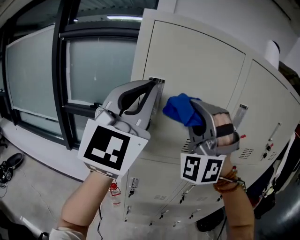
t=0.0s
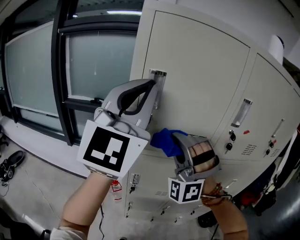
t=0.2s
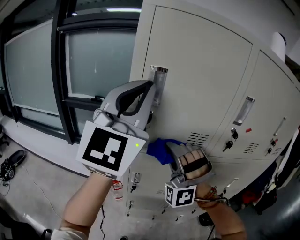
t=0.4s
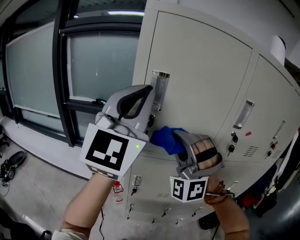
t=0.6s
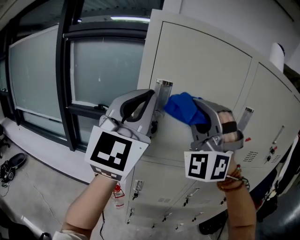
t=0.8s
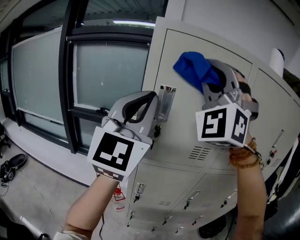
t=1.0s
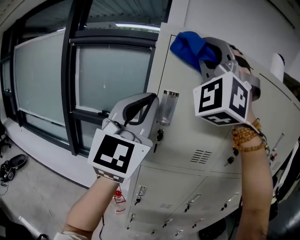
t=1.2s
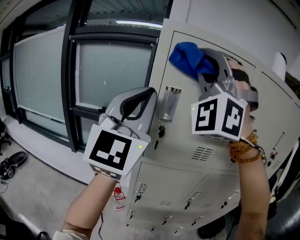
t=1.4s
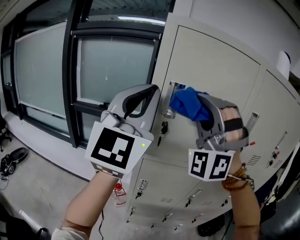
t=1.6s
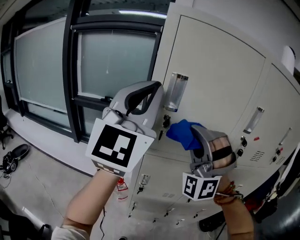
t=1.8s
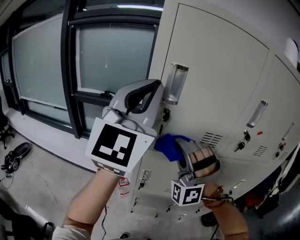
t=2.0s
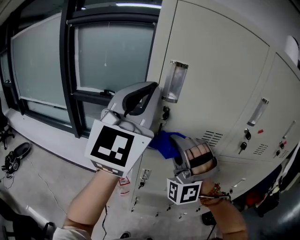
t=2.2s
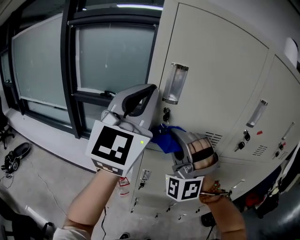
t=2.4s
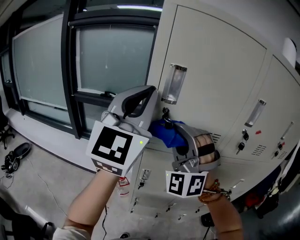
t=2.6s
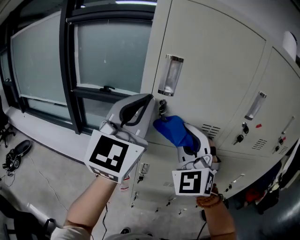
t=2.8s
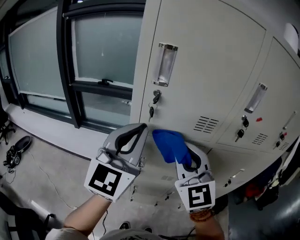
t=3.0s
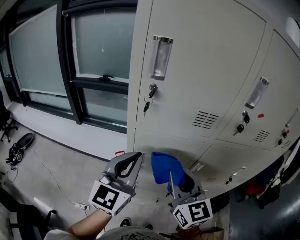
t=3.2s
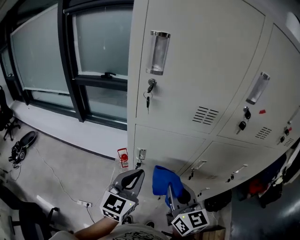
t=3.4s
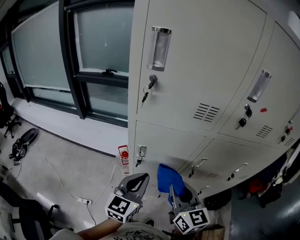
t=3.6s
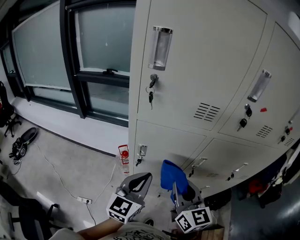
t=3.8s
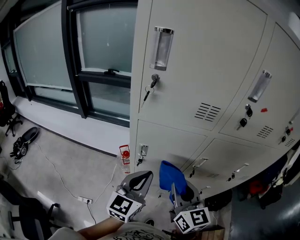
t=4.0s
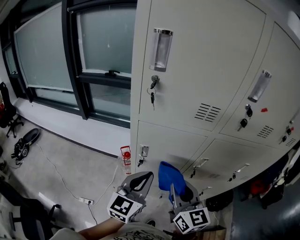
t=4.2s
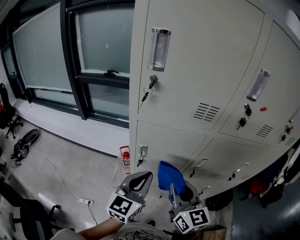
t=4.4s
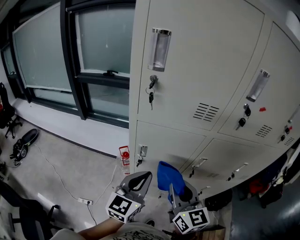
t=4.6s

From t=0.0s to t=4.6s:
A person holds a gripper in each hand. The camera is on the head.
From t=1.6s to t=3.0s: The left gripper moves downward, some 15 cm.
From t=3.0s to t=4.6s: The left gripper moves downward, about 20 cm, and swivels some 30 degrees.

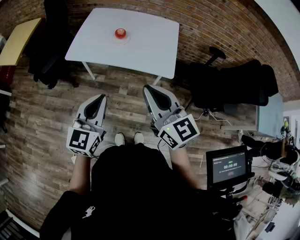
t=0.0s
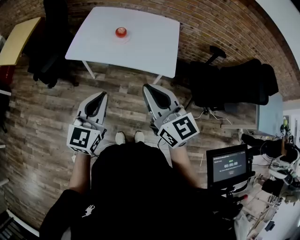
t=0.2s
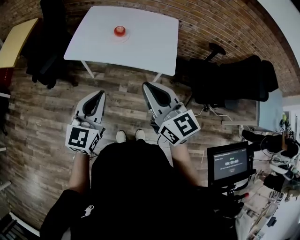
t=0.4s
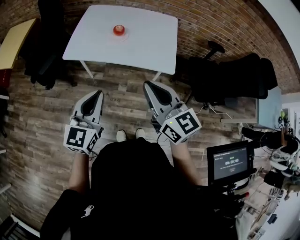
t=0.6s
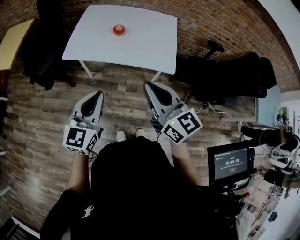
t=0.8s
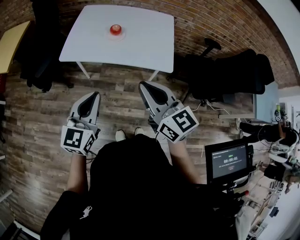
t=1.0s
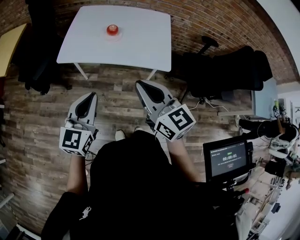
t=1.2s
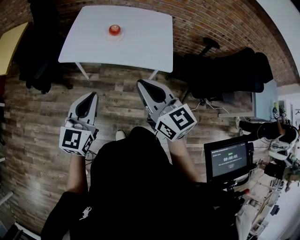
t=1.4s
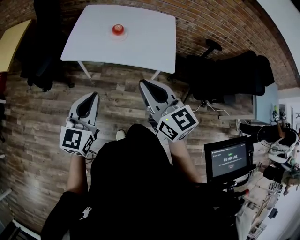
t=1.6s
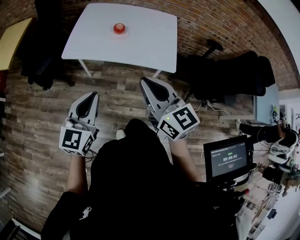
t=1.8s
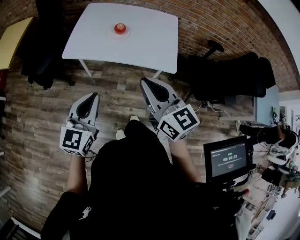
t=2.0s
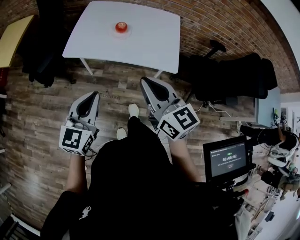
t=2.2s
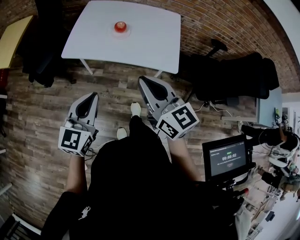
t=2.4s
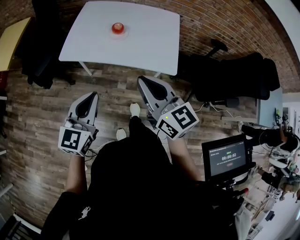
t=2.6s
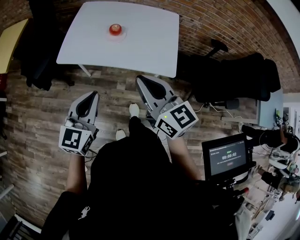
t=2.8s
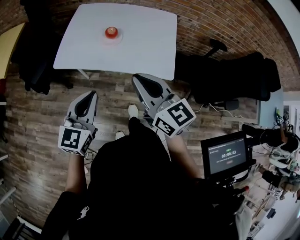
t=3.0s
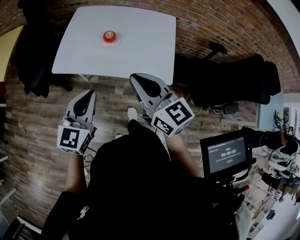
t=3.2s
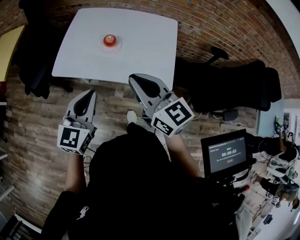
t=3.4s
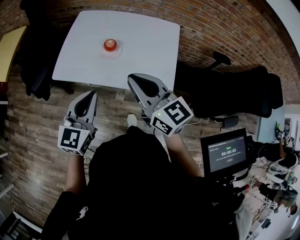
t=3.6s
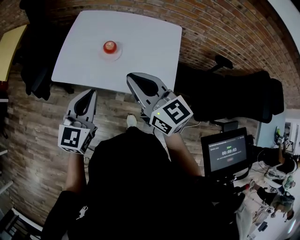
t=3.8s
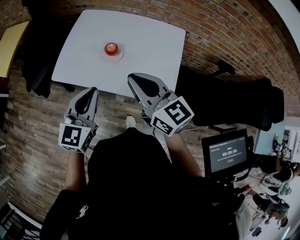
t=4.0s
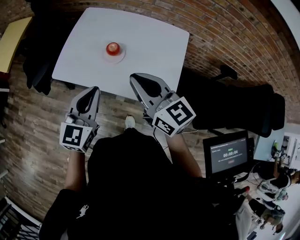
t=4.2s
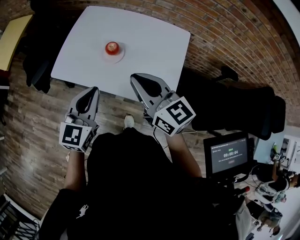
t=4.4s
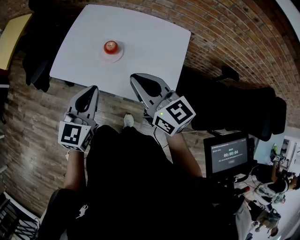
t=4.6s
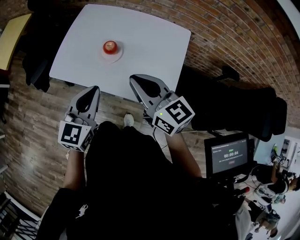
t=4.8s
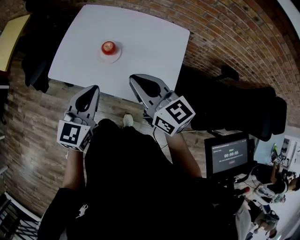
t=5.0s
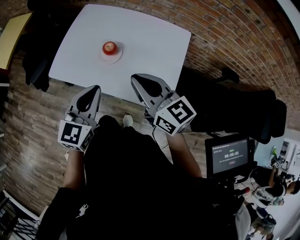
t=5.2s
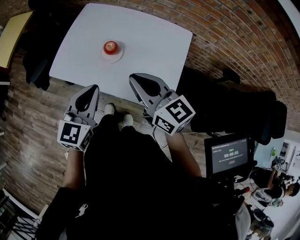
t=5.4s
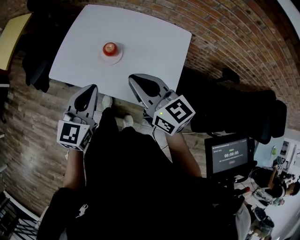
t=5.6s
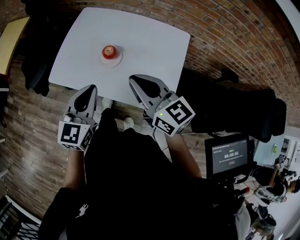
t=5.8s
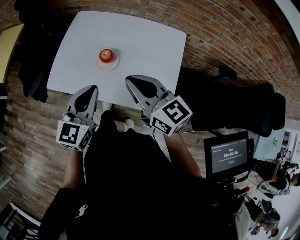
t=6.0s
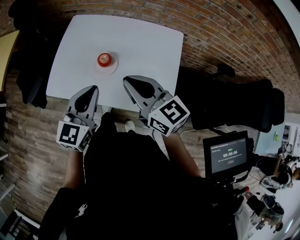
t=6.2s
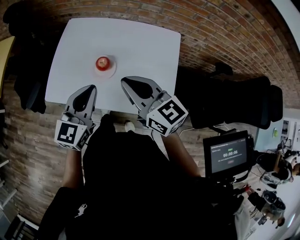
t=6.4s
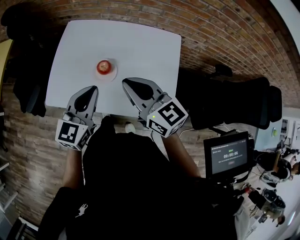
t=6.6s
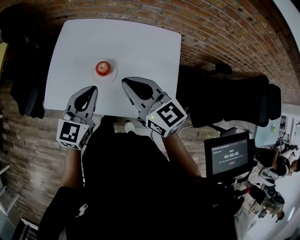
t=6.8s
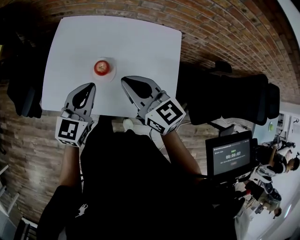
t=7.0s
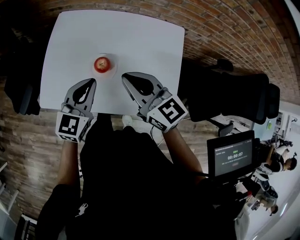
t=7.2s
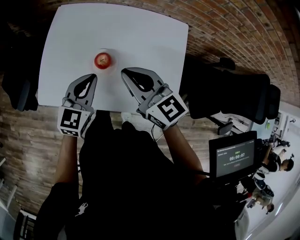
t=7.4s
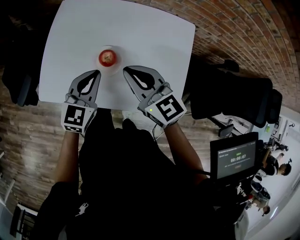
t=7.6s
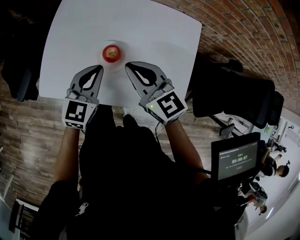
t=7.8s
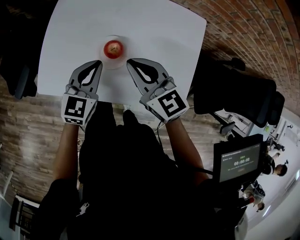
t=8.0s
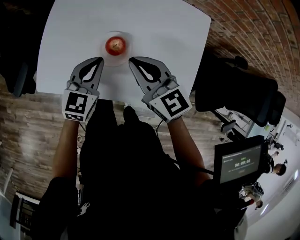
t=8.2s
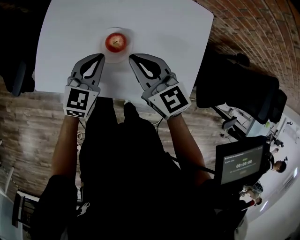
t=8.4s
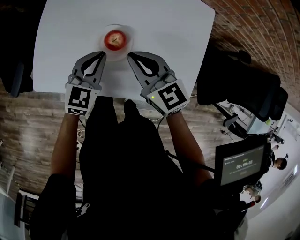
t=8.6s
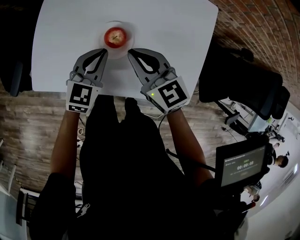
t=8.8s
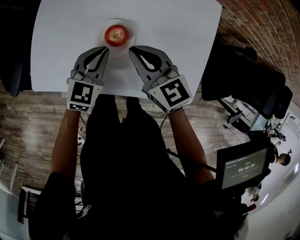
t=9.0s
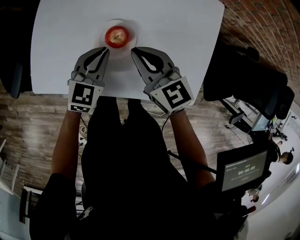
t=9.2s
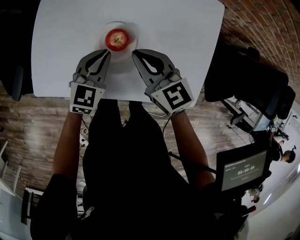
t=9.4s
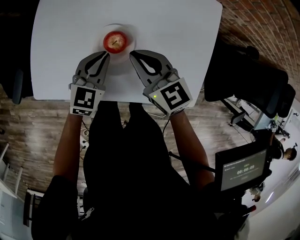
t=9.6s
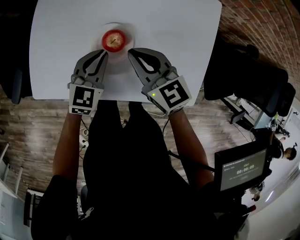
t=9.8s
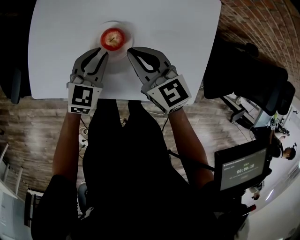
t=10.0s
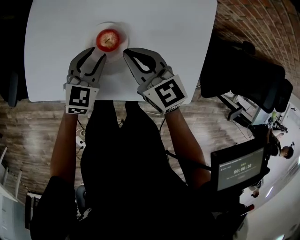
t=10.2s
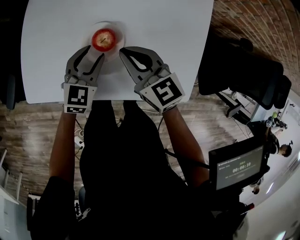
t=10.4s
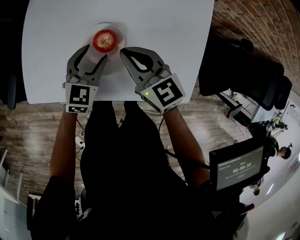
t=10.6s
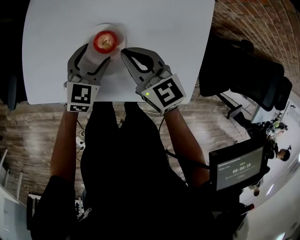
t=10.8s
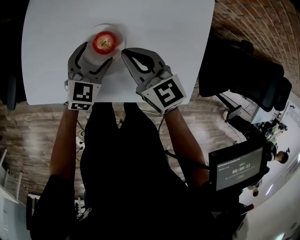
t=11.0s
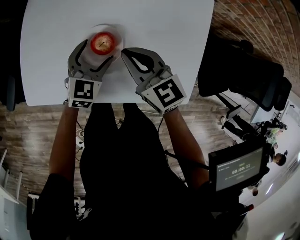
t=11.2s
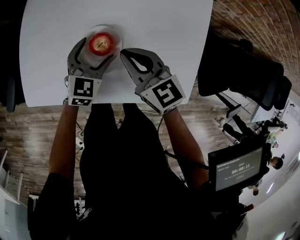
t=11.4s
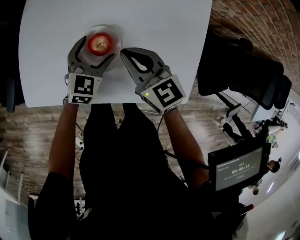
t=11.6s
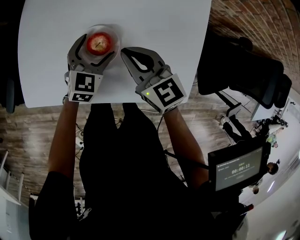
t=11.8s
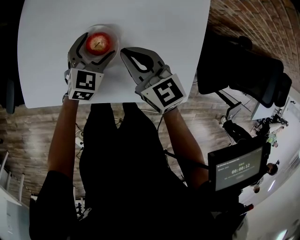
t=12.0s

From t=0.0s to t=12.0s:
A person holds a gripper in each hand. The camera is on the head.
From t=0.0s to t=1.6s: The left gripper shifts approximately 5 cm to the left; the right gripper moves about 5 cm.
From t=1.6s to t=3.0s: The grippers both shift forward by roughly 10 cm.
From t=3.0s to t=4.4s: The right gripper shifts some 15 cm forward; the left gripper travels forward and to the right by some 15 cm.
From t=4.4s to t=6.0s: Both grippers travel together forward, roughly 5 cm.
From t=6.0s to t=7.6s: The left gripper travels forward and downward by roughly 20 cm; the right gripper goes about 15 cm forward, downward and to the left.
From t=7.6s to t=9.0s: The grippers both shift downward by approximately 10 cm.
From t=9.0s to t=10.4s: The left gripper opens.
From t=10.4s to t=12.0s: The left gripper opens its fingers.

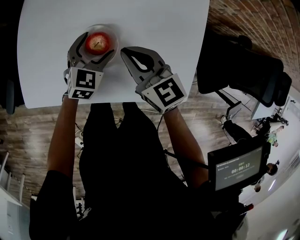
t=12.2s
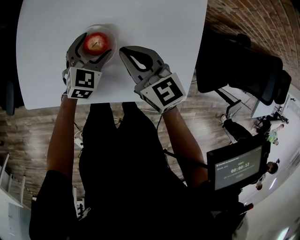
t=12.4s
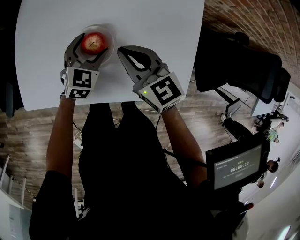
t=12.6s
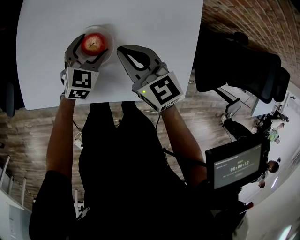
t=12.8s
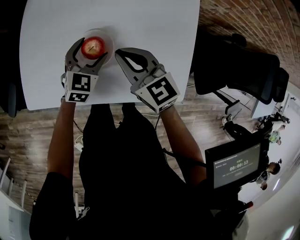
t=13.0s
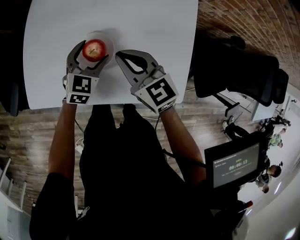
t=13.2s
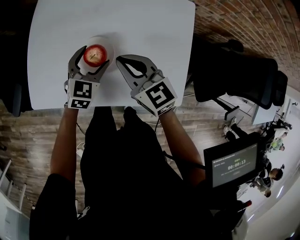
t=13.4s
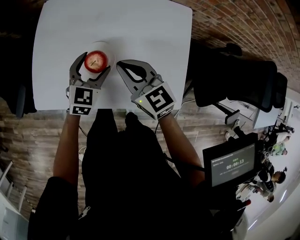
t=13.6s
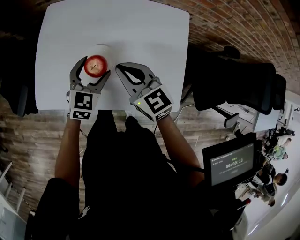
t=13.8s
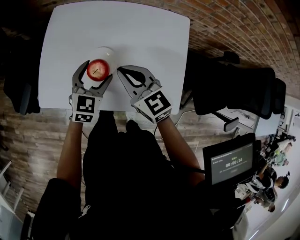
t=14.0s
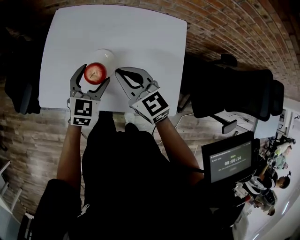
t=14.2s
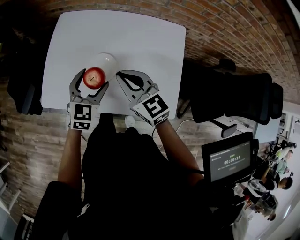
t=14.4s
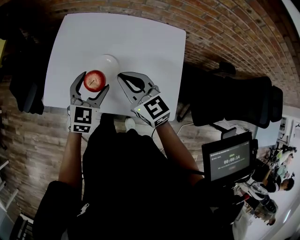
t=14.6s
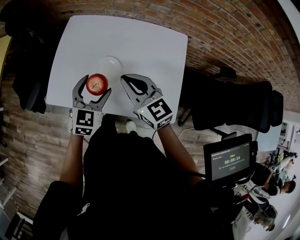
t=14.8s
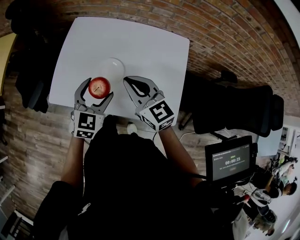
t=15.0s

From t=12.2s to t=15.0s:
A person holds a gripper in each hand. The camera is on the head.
From t=12.2s to t=13.6s: The grippers both shift upward by approximately 10 cm.
From t=13.6s to t=15.0s: The grippers both shift upward and backward by approximately 10 cm.

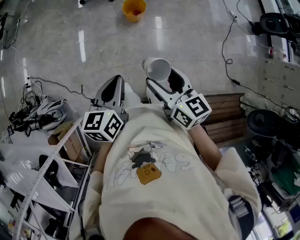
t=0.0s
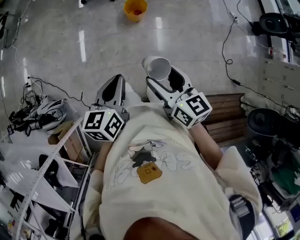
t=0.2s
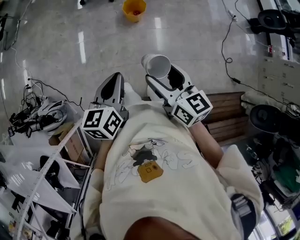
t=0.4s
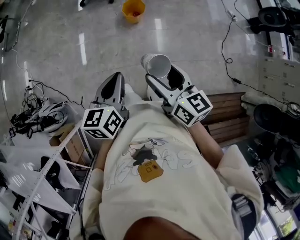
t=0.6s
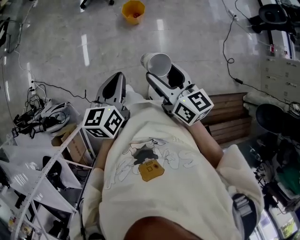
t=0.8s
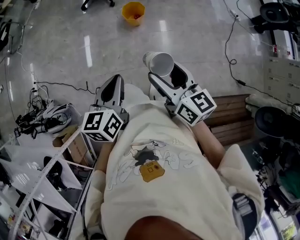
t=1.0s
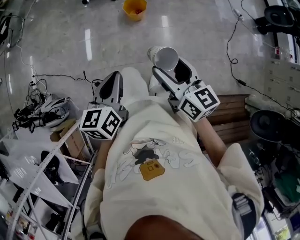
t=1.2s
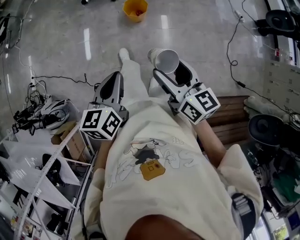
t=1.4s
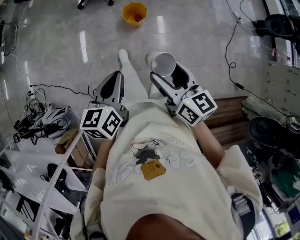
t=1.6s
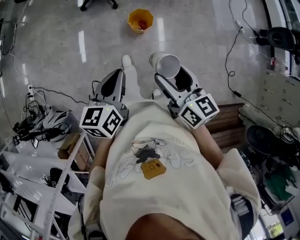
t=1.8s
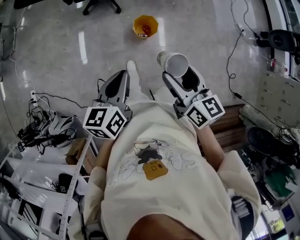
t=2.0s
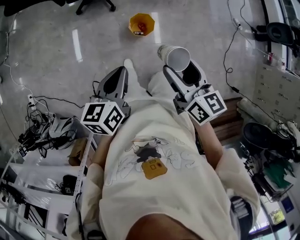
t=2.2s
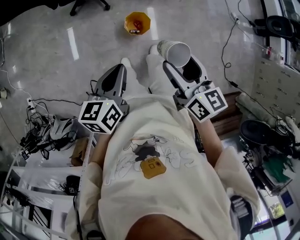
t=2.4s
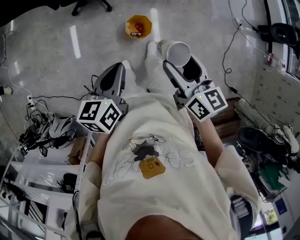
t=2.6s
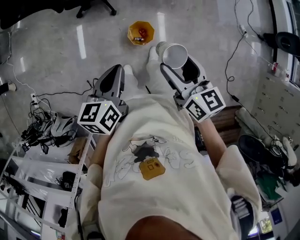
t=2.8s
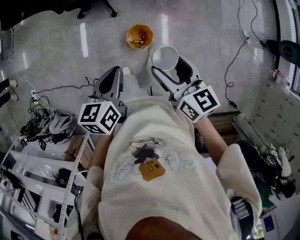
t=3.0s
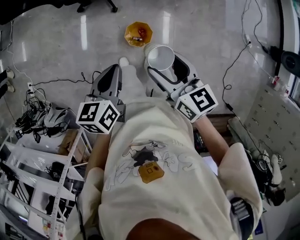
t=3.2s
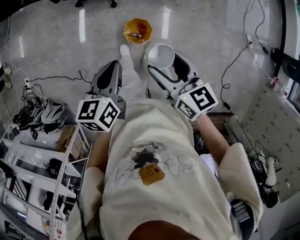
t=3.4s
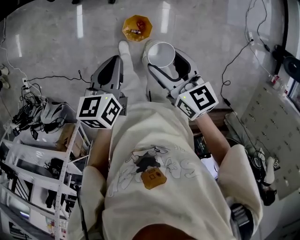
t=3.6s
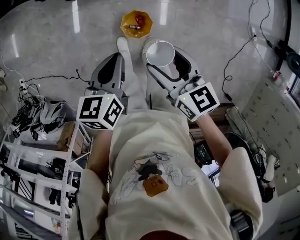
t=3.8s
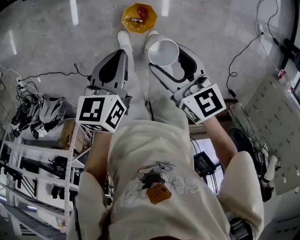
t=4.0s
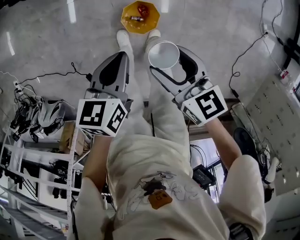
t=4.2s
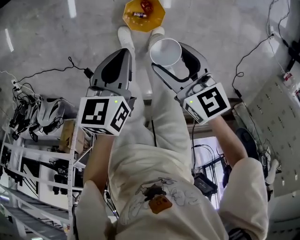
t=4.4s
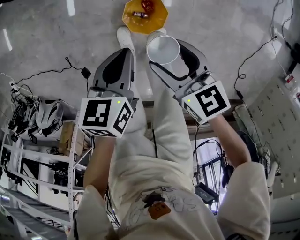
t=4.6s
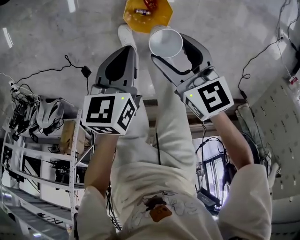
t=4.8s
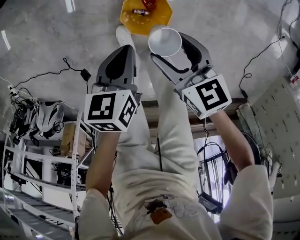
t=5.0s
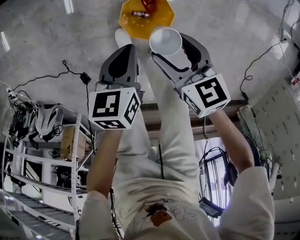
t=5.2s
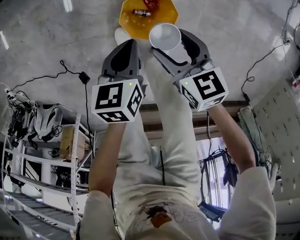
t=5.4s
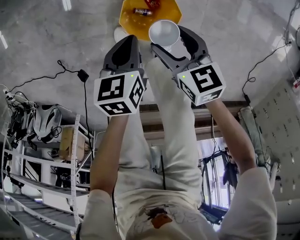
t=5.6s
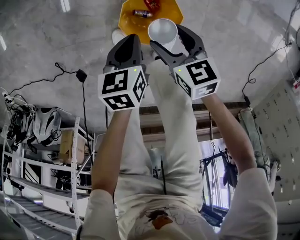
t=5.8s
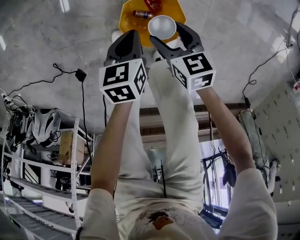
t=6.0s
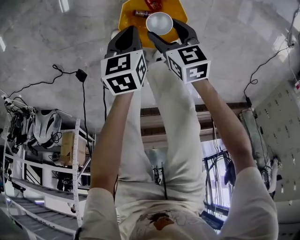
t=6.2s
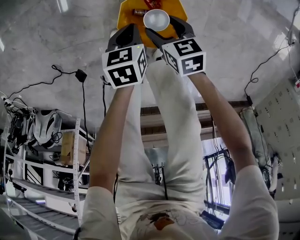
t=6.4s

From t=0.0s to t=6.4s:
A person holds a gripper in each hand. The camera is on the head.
From t=0.0s to t=1.6s: Both grippers move forward, some 15 cm.
From t=1.6s to t=3.2s: The two grippers travel together, forward, some 40 cm.
From t=3.2s to t=4.8s: Both grippers travel together downward, roughly 40 cm. The right gripper turns by roughly 20 degrees.
From t=4.8s to t=6.4s: The two grippers go approximately 35 cm downward.
